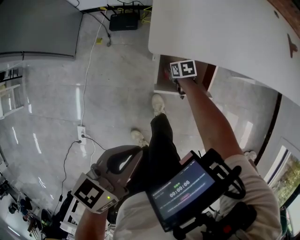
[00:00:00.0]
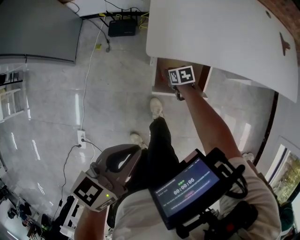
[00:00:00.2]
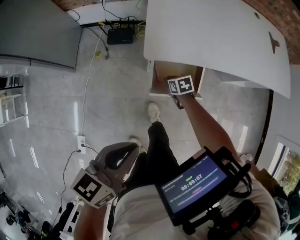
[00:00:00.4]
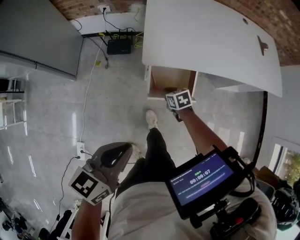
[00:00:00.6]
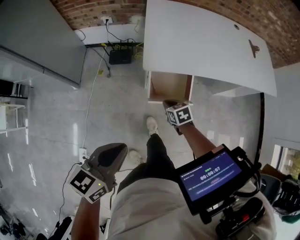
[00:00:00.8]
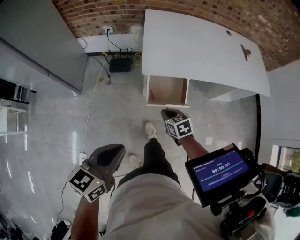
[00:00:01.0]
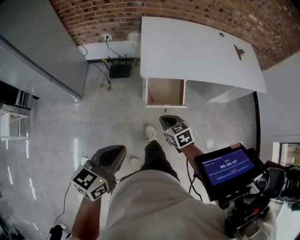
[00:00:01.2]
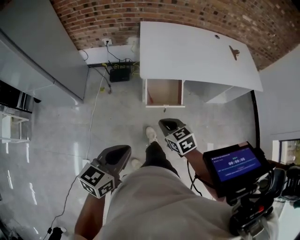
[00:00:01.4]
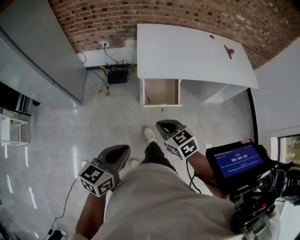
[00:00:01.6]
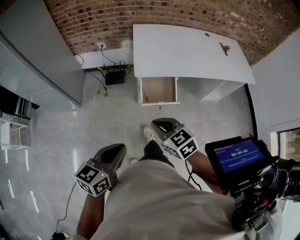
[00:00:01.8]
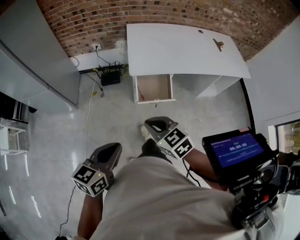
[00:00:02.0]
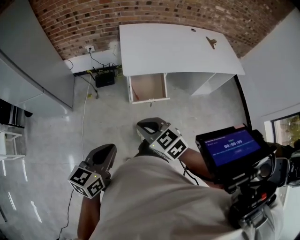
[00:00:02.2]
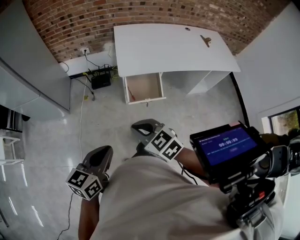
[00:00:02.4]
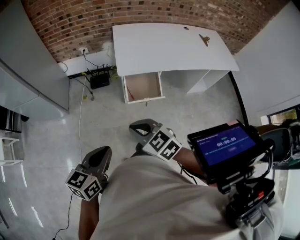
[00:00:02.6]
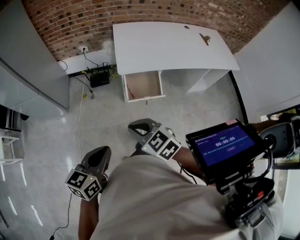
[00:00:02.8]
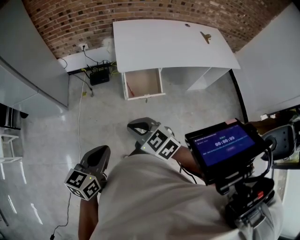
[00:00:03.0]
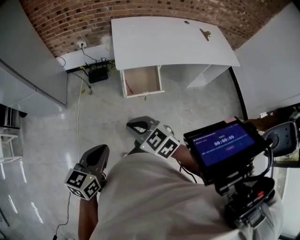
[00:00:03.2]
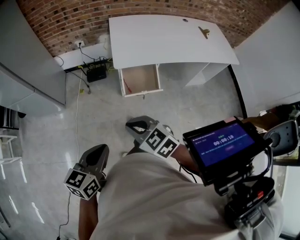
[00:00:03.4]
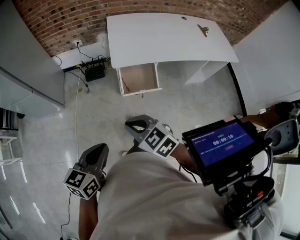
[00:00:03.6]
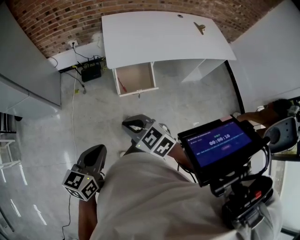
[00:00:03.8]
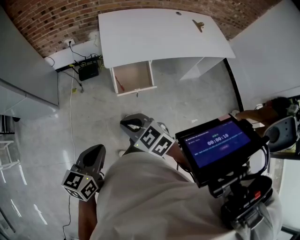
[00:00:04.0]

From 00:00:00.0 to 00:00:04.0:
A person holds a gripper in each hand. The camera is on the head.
From 00:00:00.0 to 00:00:01.4: The left gripper shifts some 25 cm backward and upward, while the right gripper heads upward and backward, covering about 50 cm, and swivels some 30 degrees.
From 00:00:01.4 to 00:00:02.6: The right gripper heads upward, to the left and backward, covering some 15 cm.
From 00:00:02.6 to 00:00:04.0: There are only small adjustments of the grippers.

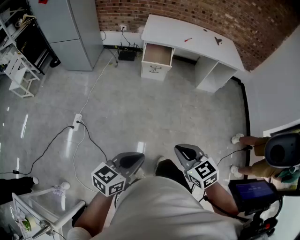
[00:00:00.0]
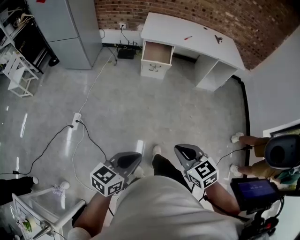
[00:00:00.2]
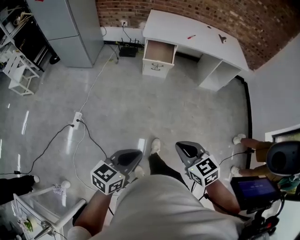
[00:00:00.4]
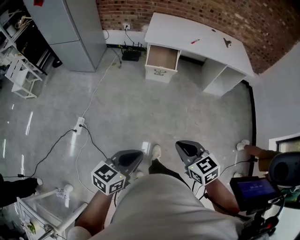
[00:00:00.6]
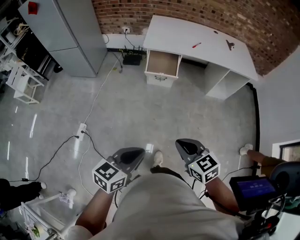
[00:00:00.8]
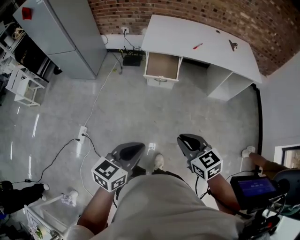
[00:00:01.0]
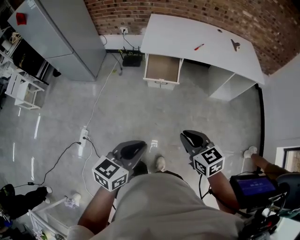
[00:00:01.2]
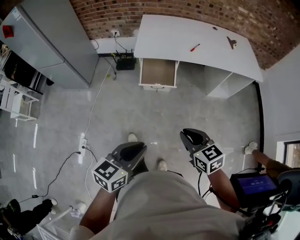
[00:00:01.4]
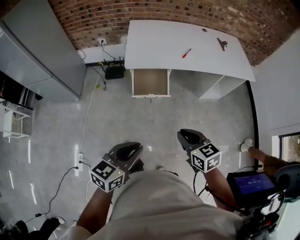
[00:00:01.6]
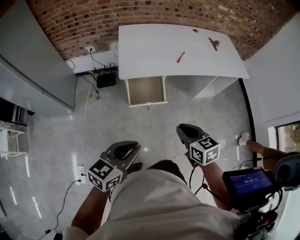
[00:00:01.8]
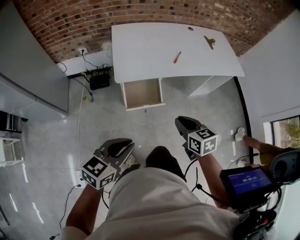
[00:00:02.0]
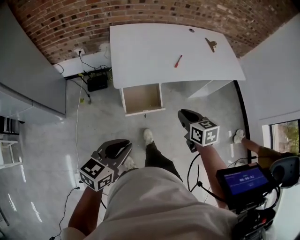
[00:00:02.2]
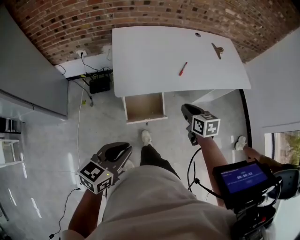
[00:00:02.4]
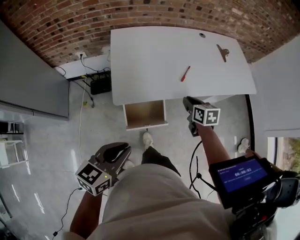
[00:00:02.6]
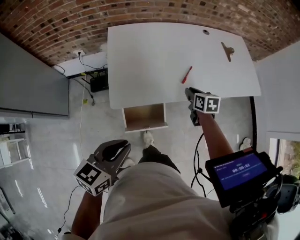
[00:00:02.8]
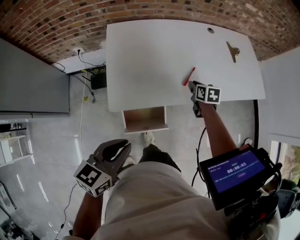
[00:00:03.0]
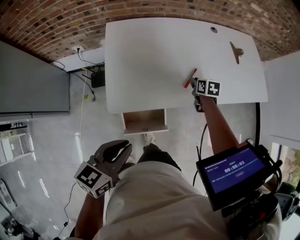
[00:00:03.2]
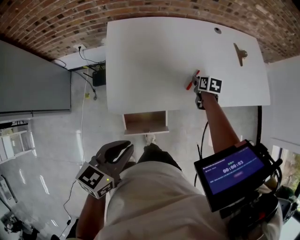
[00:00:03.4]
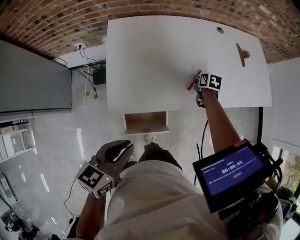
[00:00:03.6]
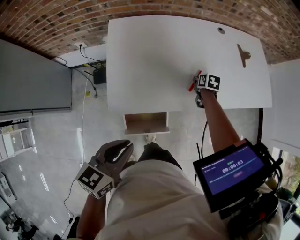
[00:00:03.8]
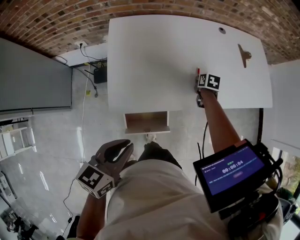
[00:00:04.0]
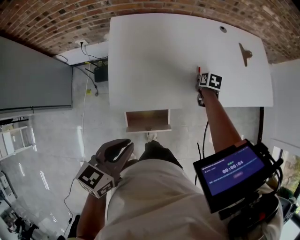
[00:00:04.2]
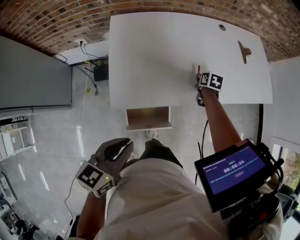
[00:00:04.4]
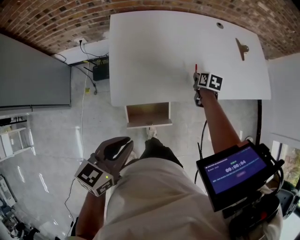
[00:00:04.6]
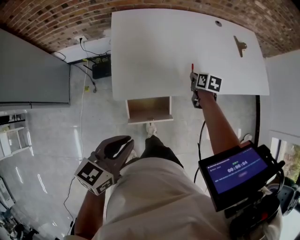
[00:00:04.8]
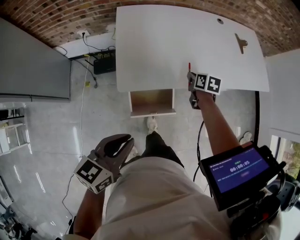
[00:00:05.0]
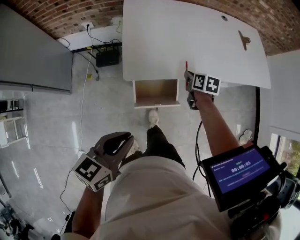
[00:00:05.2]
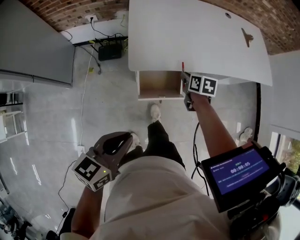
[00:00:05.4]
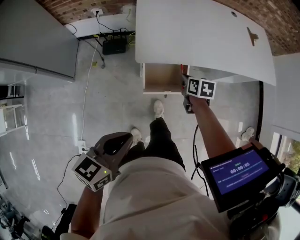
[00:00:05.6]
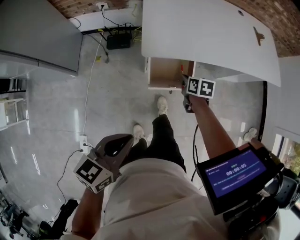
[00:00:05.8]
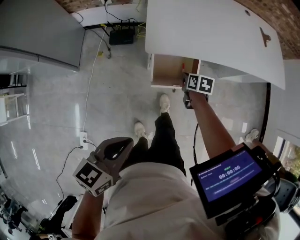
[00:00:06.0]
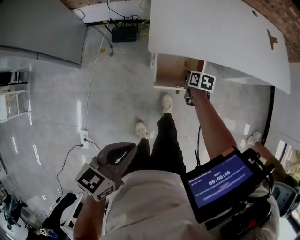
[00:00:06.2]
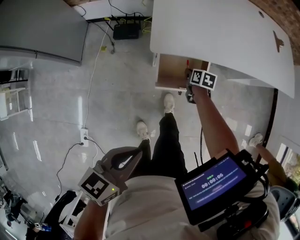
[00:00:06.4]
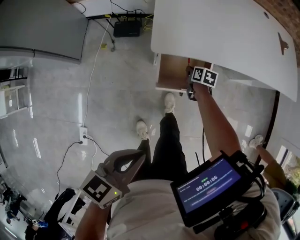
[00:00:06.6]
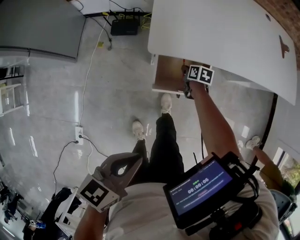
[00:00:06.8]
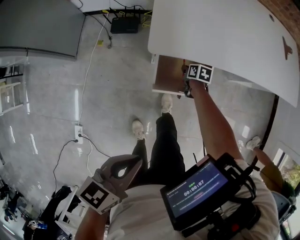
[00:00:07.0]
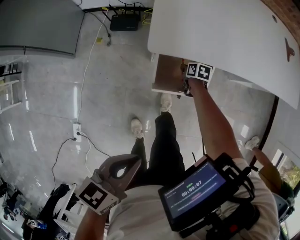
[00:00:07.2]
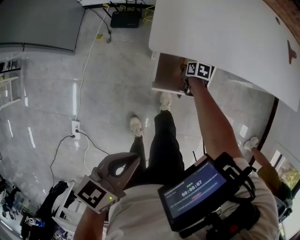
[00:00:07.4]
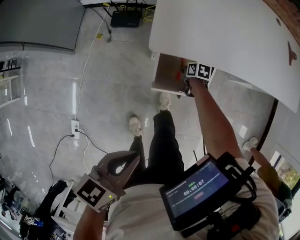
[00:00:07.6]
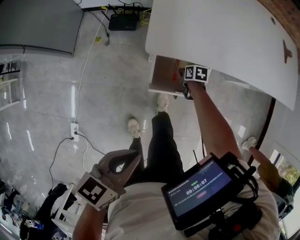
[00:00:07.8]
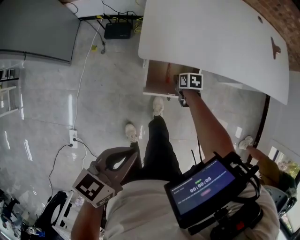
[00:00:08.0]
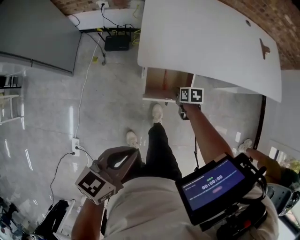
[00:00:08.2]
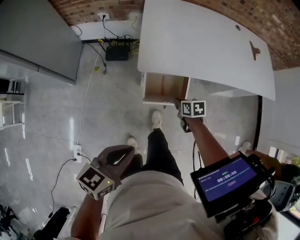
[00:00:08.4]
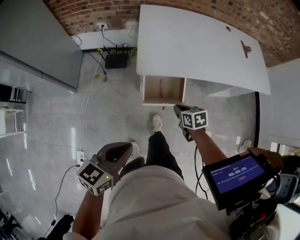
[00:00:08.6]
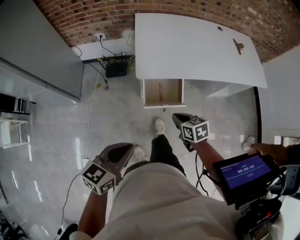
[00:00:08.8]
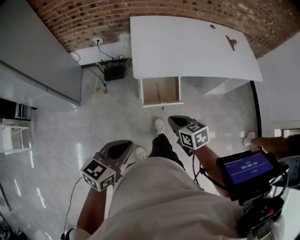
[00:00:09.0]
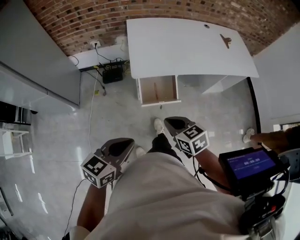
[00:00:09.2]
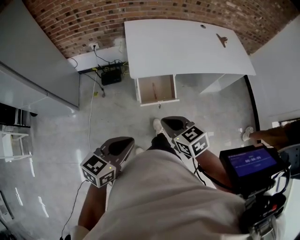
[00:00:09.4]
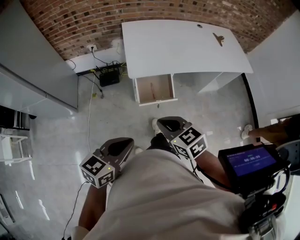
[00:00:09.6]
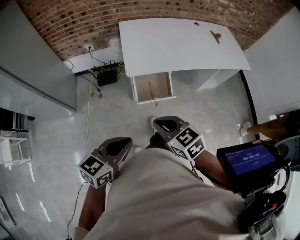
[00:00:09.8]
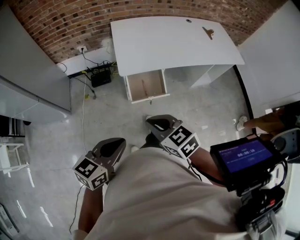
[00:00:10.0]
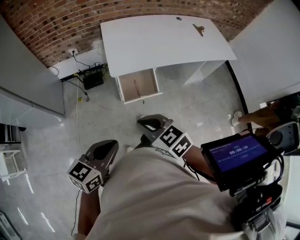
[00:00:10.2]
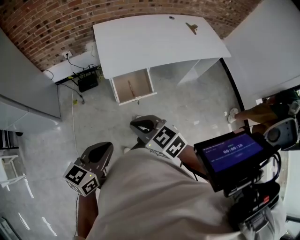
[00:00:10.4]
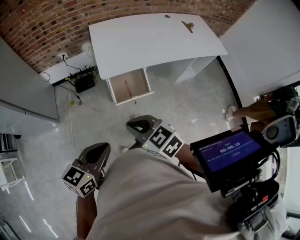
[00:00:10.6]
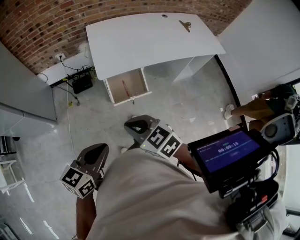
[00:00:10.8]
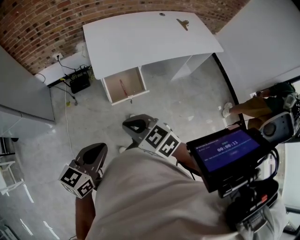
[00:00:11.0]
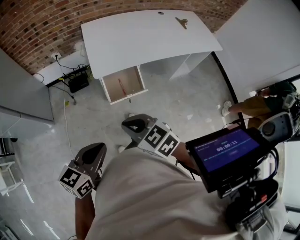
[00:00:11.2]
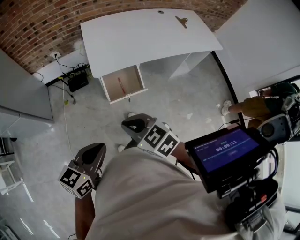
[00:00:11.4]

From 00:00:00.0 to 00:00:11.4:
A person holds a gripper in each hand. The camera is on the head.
From 00:00:00.0 to 00:00:01.4: The pair of grippers is taken forward, about 40 cm.
From 00:00:01.4 to 00:00:02.8: The pair of grippers is taken forward, some 50 cm. The right gripper rotates roughly 40 degrees.
From 00:00:02.8 to 00:00:04.2: The left gripper travels forward by roughly 10 cm, while the right gripper heads forward and downward, covering about 20 cm.
From 00:00:04.2 to 00:00:05.6: The left gripper goes some 25 cm backward. Meanwhile the right gripper shifts about 35 cm backward and to the left.
From 00:00:05.6 to 00:00:07.2: The right gripper travels downward by approximately 30 cm. Meanwhile the left gripper travels downward by roughly 10 cm.
From 00:00:07.2 to 00:00:08.6: The left gripper is displaced upward by some 10 cm; the right gripper is displaced upward and backward by roughly 35 cm, and rotates roughly 20 degrees.
From 00:00:08.6 to 00:00:10.0: The left gripper shifts approximately 10 cm backward and upward. The right gripper heads upward, backward and to the left, covering some 30 cm, and turns by approximately 30 degrees.
From 00:00:10.0 to 00:00:11.4: Both grippers stay about where they are.

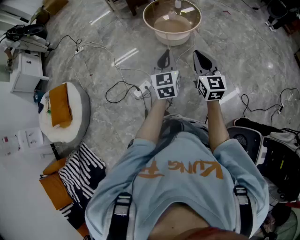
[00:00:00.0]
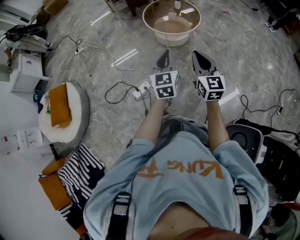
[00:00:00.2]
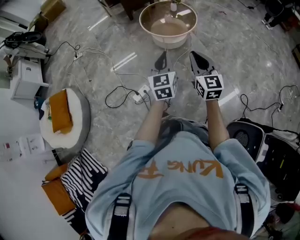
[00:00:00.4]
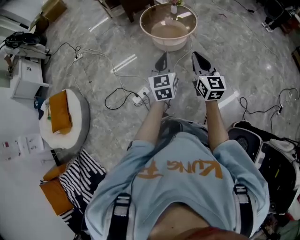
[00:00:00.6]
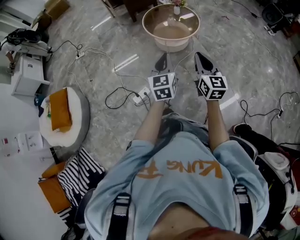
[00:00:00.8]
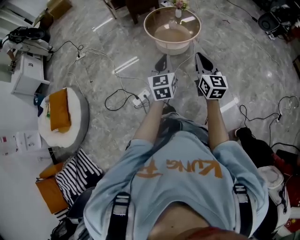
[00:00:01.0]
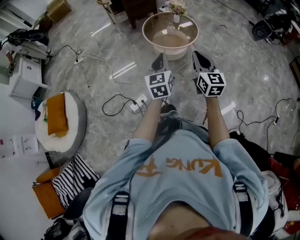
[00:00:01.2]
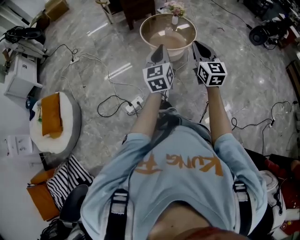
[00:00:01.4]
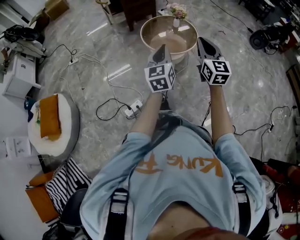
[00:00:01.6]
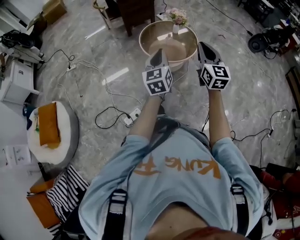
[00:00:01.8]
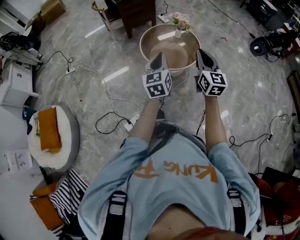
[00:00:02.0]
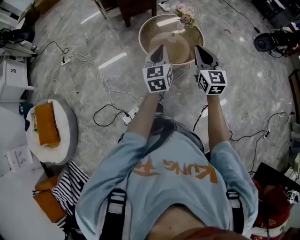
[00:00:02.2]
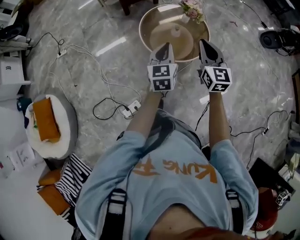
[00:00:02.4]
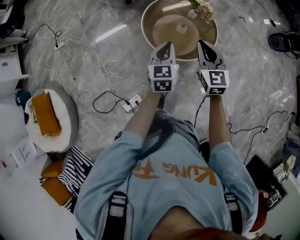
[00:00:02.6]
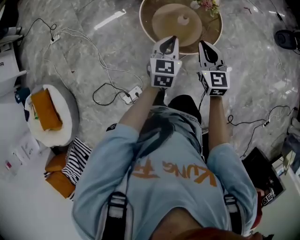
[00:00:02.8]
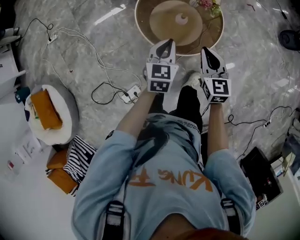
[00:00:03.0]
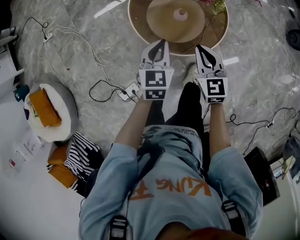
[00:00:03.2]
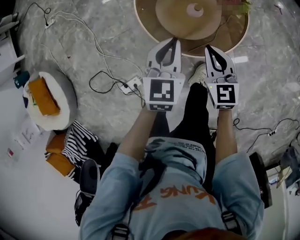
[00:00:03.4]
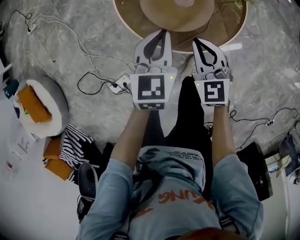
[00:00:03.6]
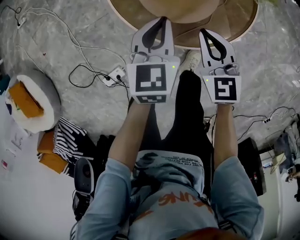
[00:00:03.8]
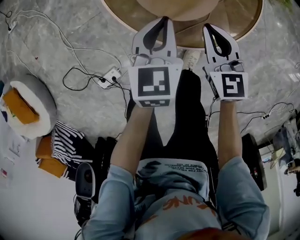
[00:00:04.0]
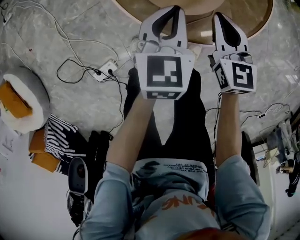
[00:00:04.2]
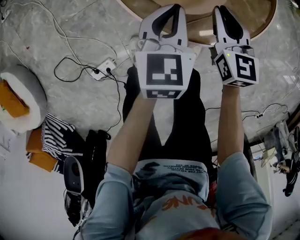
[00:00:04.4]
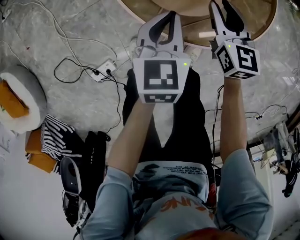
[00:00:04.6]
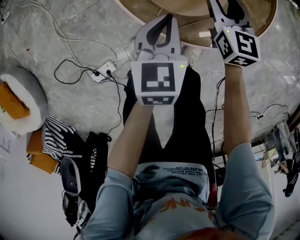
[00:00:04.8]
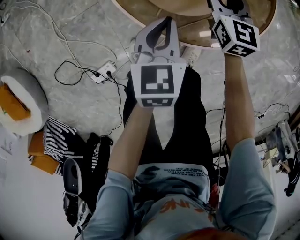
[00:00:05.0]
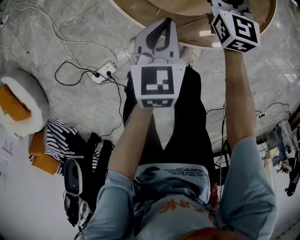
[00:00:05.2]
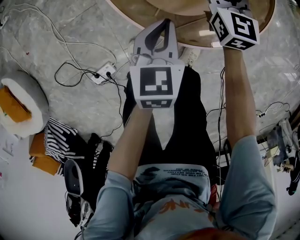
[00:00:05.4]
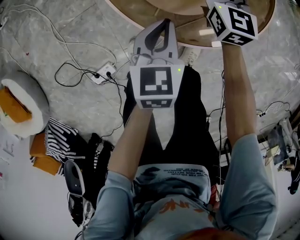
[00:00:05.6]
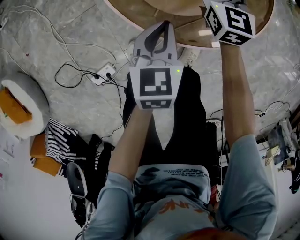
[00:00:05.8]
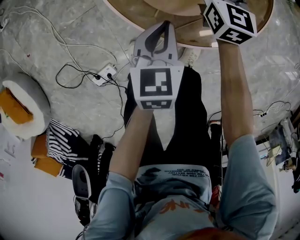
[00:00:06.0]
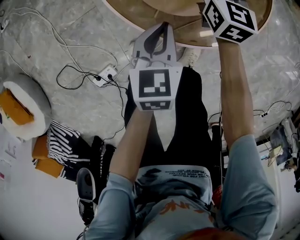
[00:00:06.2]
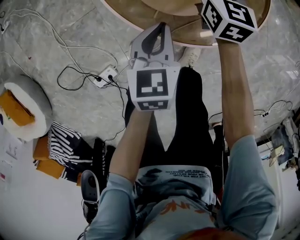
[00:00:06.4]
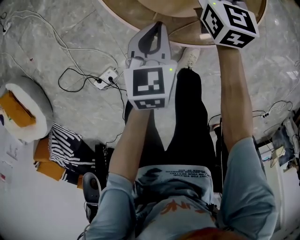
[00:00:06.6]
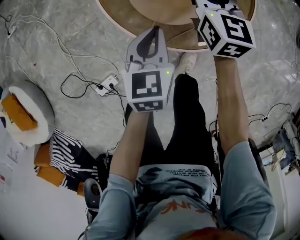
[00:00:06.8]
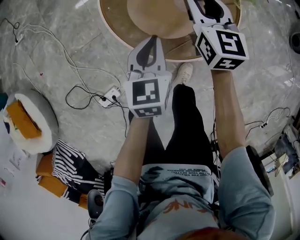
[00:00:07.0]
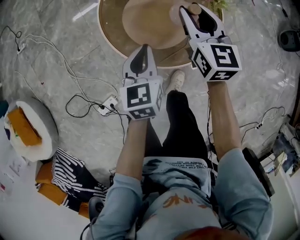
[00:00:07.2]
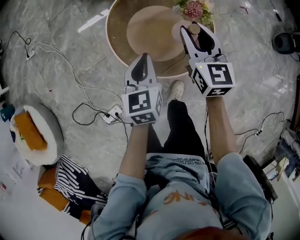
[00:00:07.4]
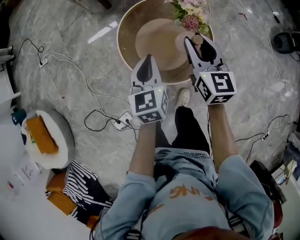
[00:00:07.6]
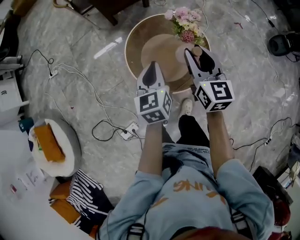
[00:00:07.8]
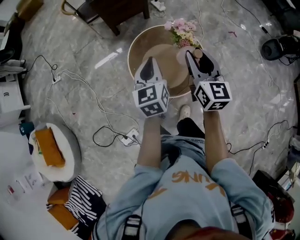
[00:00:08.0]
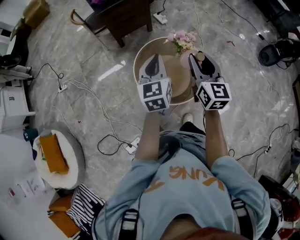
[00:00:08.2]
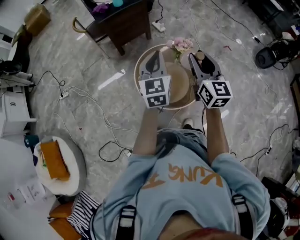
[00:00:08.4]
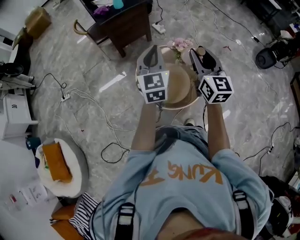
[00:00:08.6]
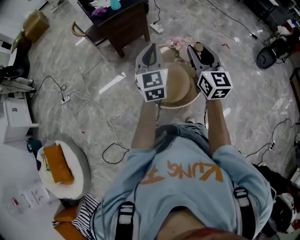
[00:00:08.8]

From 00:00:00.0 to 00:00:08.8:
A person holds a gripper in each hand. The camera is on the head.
From 00:00:00.0 to 00:00:01.4: The grippers both shift forward by approximately 10 cm.
From 00:00:01.4 to 00:00:03.0: Both grippers are carried forward, some 50 cm. Both grippers travel together downward, some 20 cm. The left gripper changes its angle by some 30 degrees. The right gripper rotates some 20 degrees.
From 00:00:03.0 to 00:00:04.4: The right gripper goes roughly 35 cm downward and forward. Meanwhile the left gripper heads downward, covering some 30 cm.
From 00:00:04.4 to 00:00:05.8: The right gripper heads forward, covering about 10 cm, and opens up.
From 00:00:05.8 to 00:00:07.4: The grippers both shift upward by approximately 25 cm.
From 00:00:07.4 to 00:00:08.8: The two grippers go roughly 35 cm upward. The right gripper rotates some 20 degrees. Meanwhile the left gripper turns by some 30 degrees.
